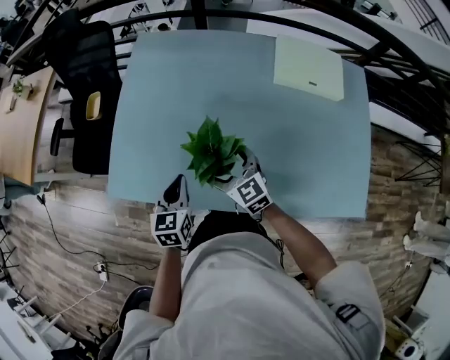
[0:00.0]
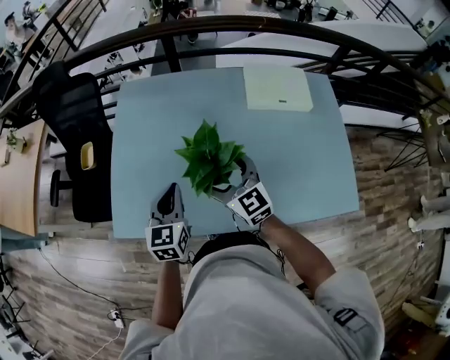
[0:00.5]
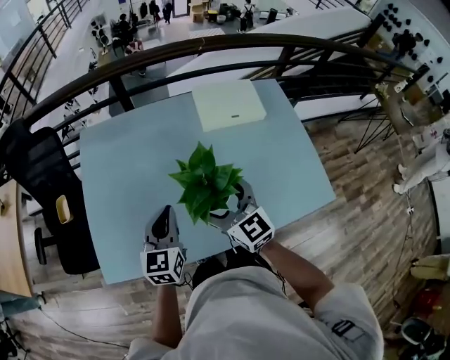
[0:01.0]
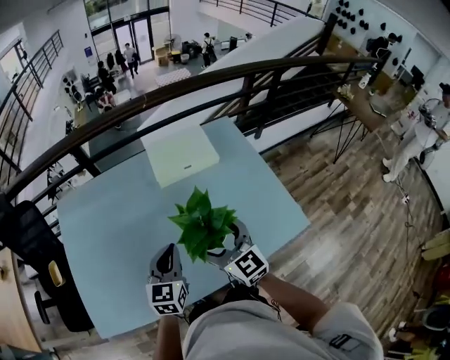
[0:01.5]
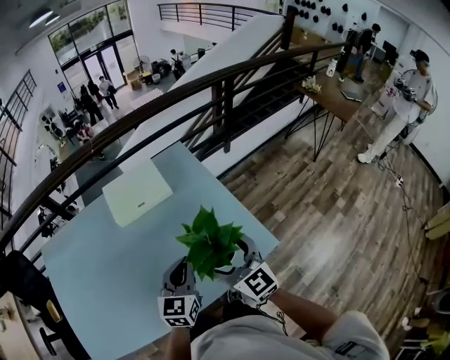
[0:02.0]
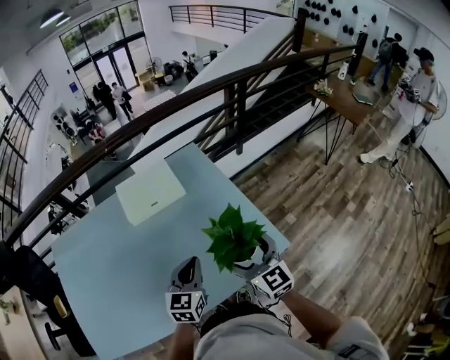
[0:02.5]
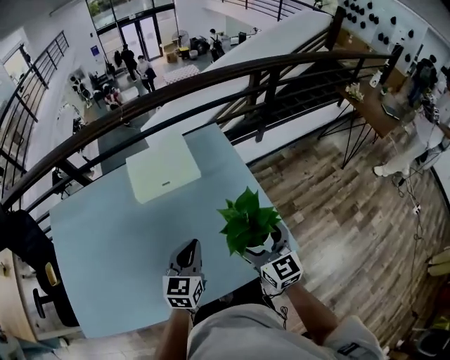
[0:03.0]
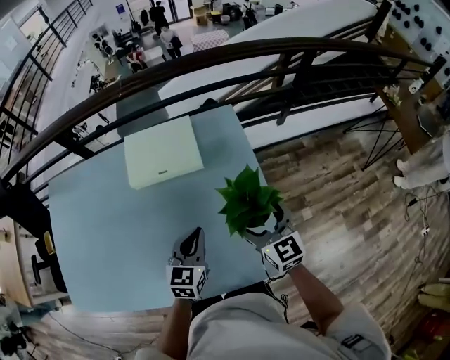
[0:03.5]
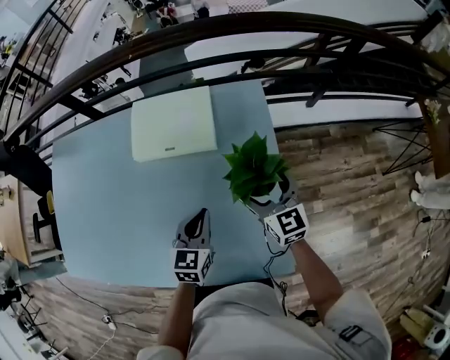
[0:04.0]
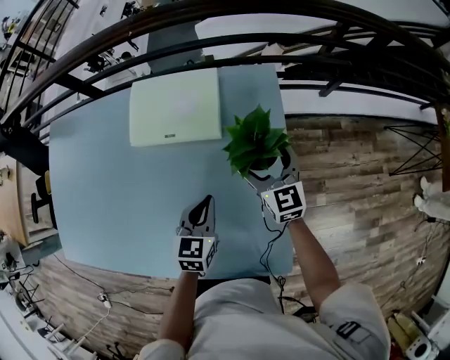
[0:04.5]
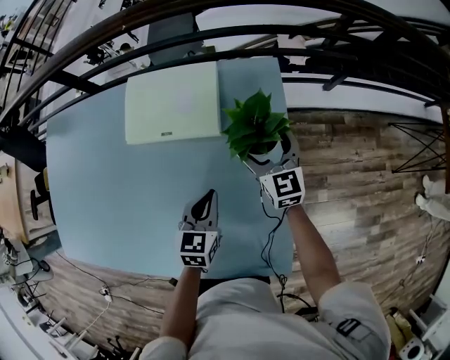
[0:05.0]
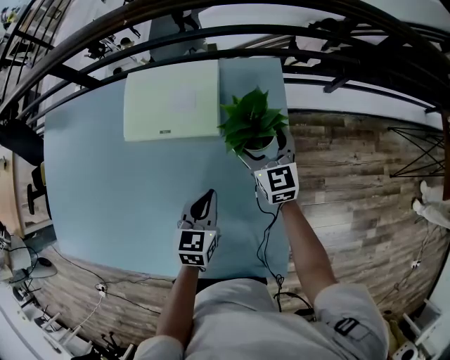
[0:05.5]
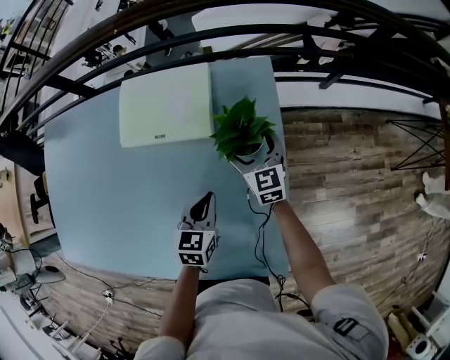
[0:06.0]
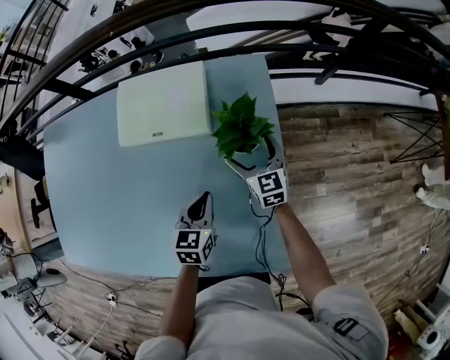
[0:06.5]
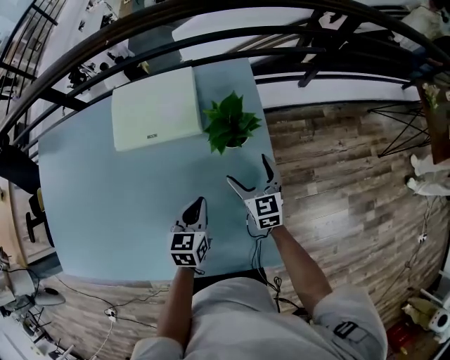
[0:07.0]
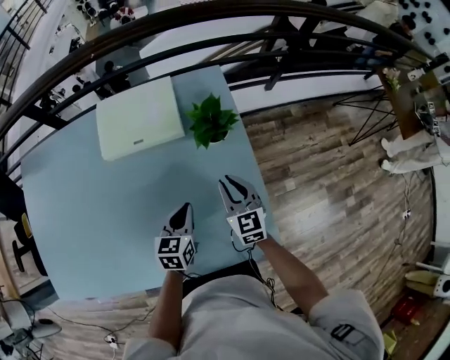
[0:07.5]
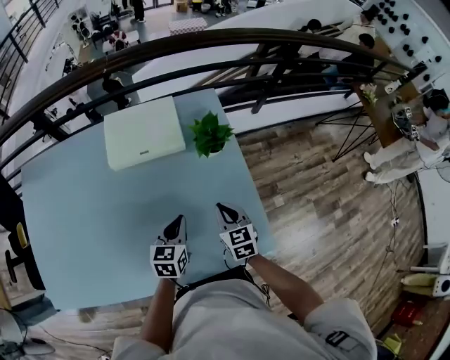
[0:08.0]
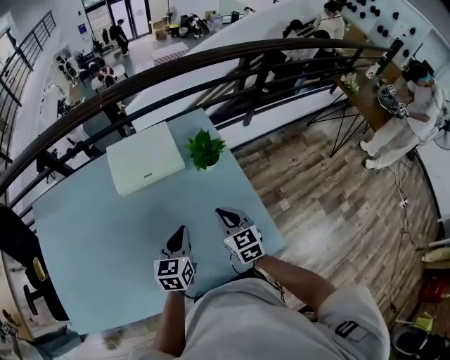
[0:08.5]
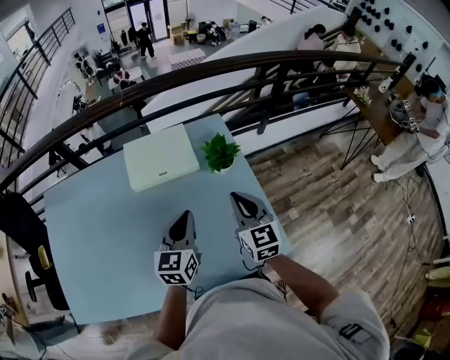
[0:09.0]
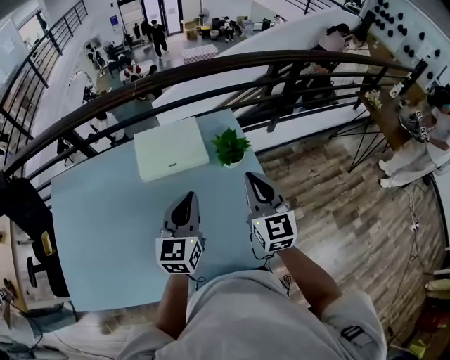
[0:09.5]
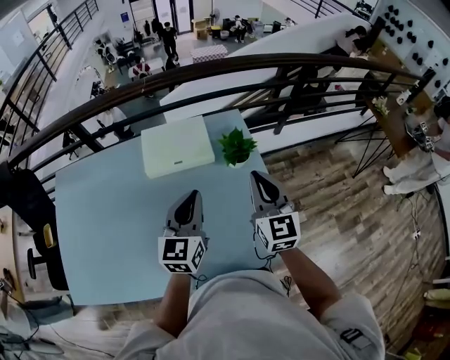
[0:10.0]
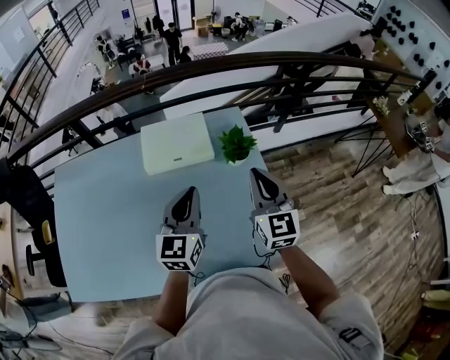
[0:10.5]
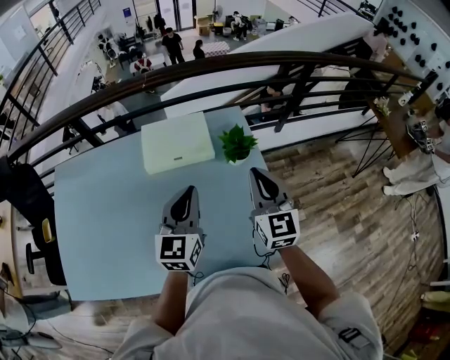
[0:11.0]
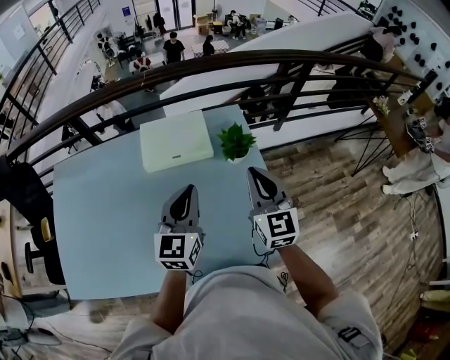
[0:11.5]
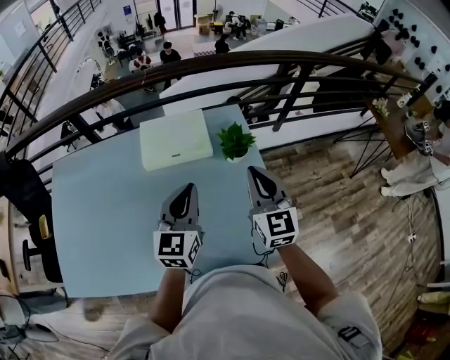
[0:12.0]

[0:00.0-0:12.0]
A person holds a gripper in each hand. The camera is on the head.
0:00.0 to 0:02.0: Both grippers are carried some 50 cm. The left gripper changes its angle by approximately 50 degrees, while the right gripper rotates roughly 40 degrees.
0:02.0 to 0:04.0: The right gripper goes approximately 30 cm forward and downward. The left gripper shifts some 20 cm forward and downward, and swivels about 30 degrees.
0:04.0 to 0:06.0: The right gripper travels downward and forward by approximately 15 cm. Meanwhile the left gripper goes approximately 10 cm downward.
0:06.0 to 0:08.0: The left gripper shifts approximately 10 cm backward and to the left; the right gripper goes approximately 25 cm backward, turns by about 20 degrees, and closes.
0:08.0 to 0:10.0: The grippers both shift upward by some 25 cm. The right gripper rotates about 30 degrees. The left gripper turns by about 30 degrees.
0:10.0 to 0:12.0: Both grippers stay about where they are.

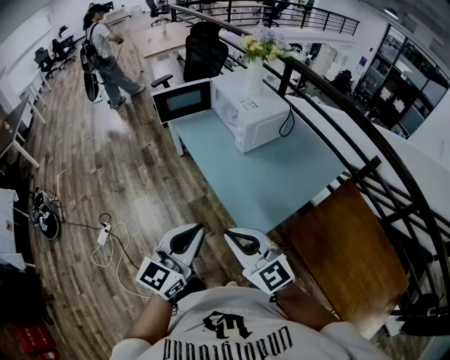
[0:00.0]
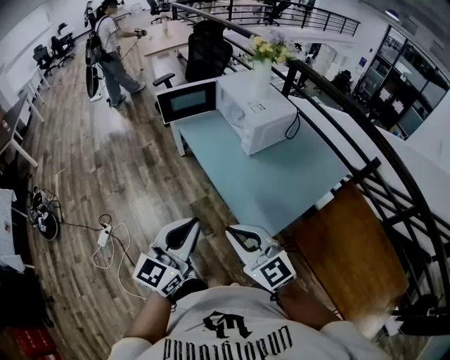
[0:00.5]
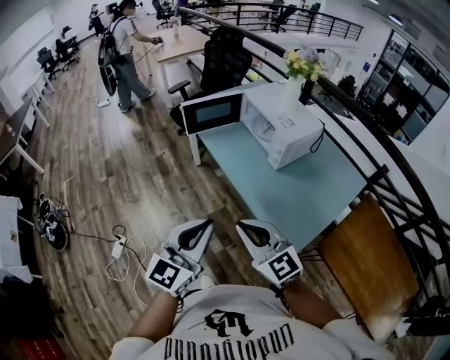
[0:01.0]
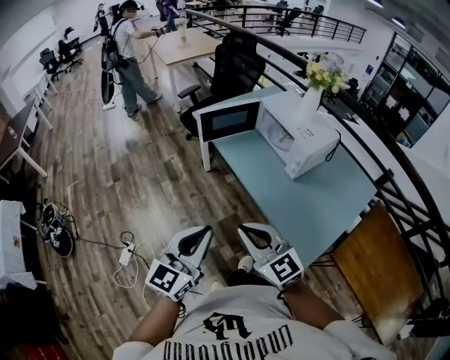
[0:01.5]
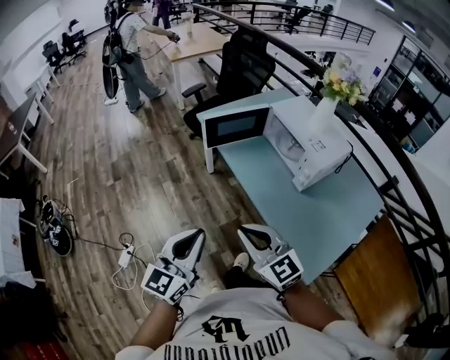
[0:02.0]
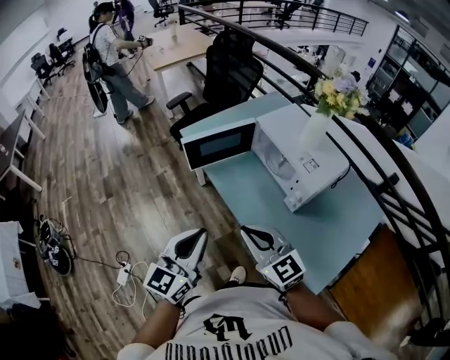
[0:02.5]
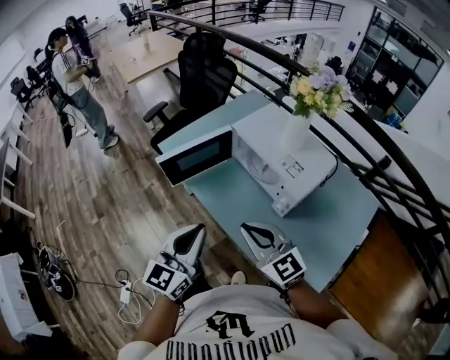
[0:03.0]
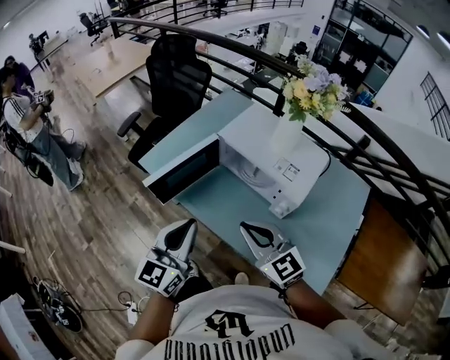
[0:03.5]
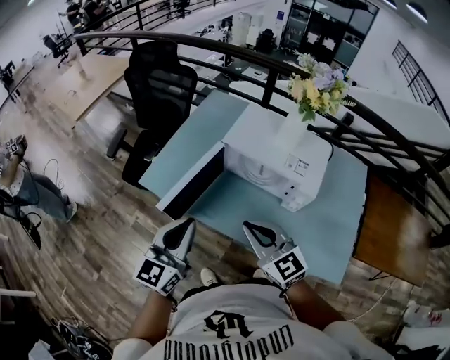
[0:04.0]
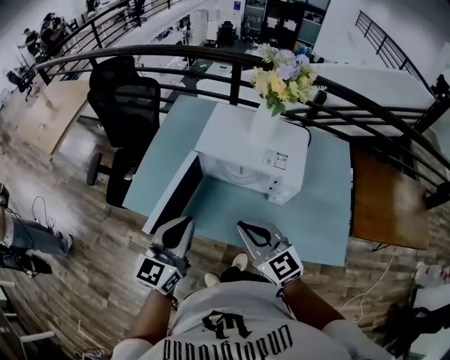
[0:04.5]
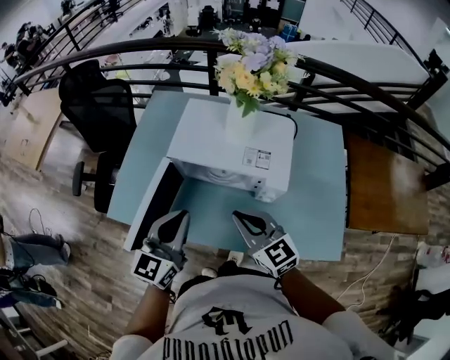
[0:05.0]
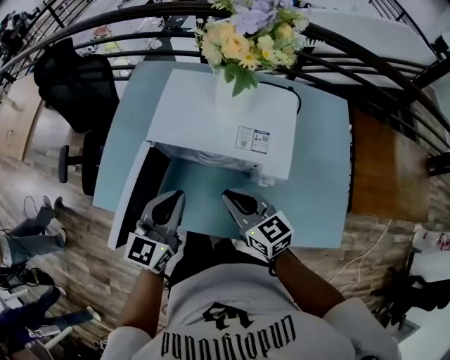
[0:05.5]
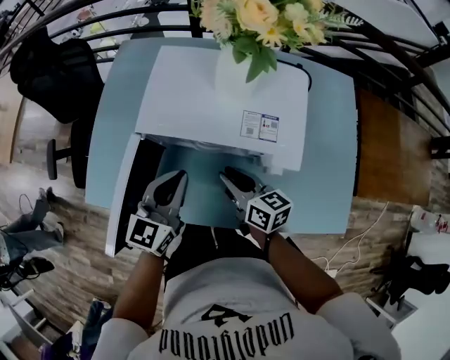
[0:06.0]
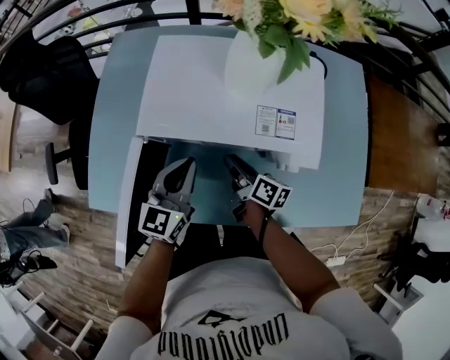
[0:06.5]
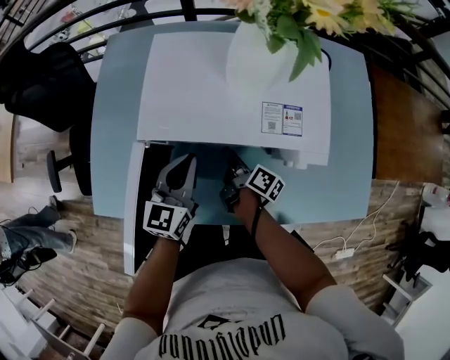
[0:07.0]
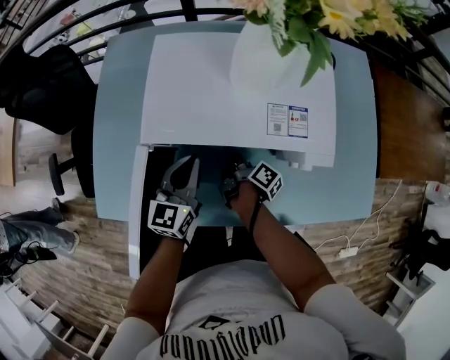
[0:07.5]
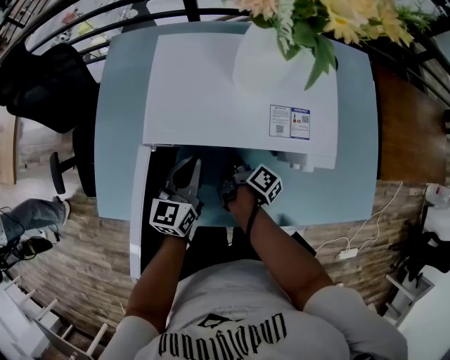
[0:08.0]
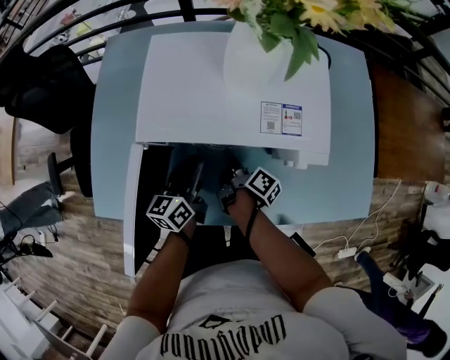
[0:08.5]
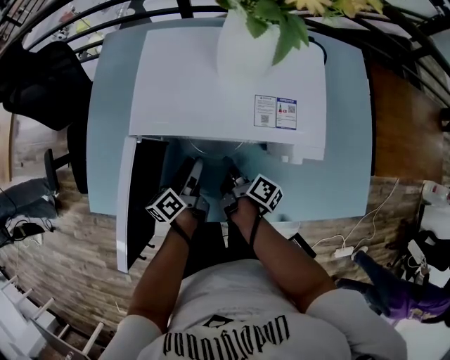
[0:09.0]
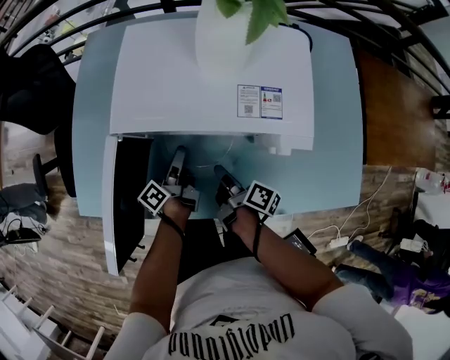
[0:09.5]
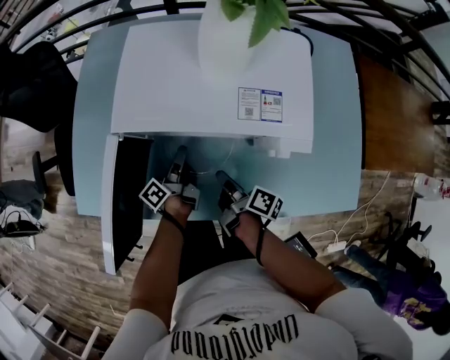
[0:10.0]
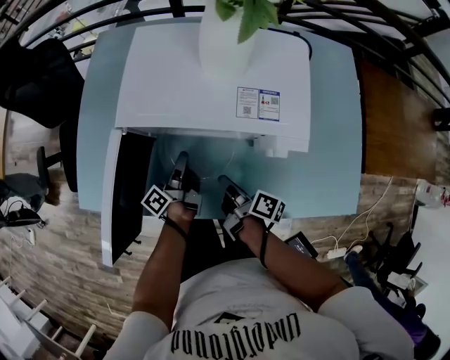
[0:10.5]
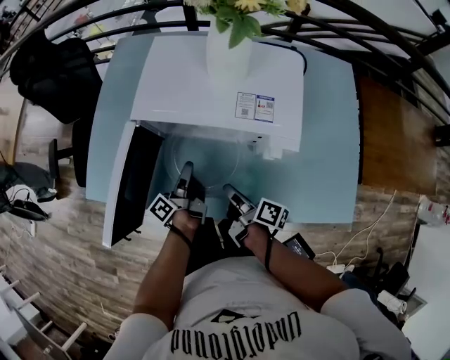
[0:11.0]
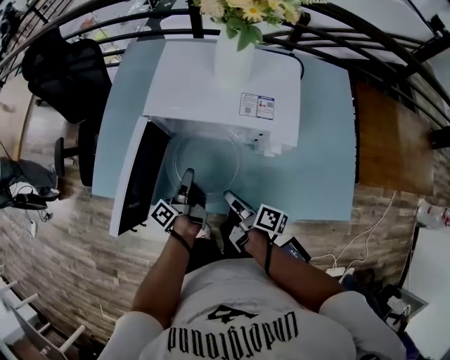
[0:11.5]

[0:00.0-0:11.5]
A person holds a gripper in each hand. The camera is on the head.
0:00.0 to 0:02.0: The left gripper travels to the left and forward by about 35 cm. The right gripper heads forward and to the left, covering roughly 30 cm.
0:02.0 to 0:04.0: The left gripper shifts by some 40 cm, and turns by roughly 30 degrees; the right gripper changes place by approximately 30 cm, and turns by some 30 degrees.
0:04.0 to 0:06.0: The right gripper is displaced downward, forward and to the right by approximately 25 cm, and rolls clockwise, seen from behind, by roughly 50 degrees. Meanwhile the left gripper is displaced forward, downward and to the right by approximately 30 cm, and rotates some 20 degrees.
0:06.0 to 0:07.5: The right gripper goes roughly 20 cm downward and forward, and twists some 60 degrees clockwise, seen from behind; the left gripper heads downward and forward, covering some 10 cm.
0:07.5 to 0:09.5: The left gripper heads downward, covering about 10 cm, rolls counterclockwise, seen from behind, by roughly 70 degrees, and opens. Meanwhile the right gripper heads backward, covering some 10 cm, and closes.
0:09.5 to 0:11.5: Both grippers travel together backward and upward, about 10 cm. The left gripper closes its fingers.

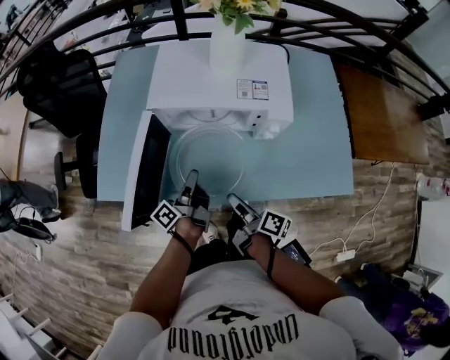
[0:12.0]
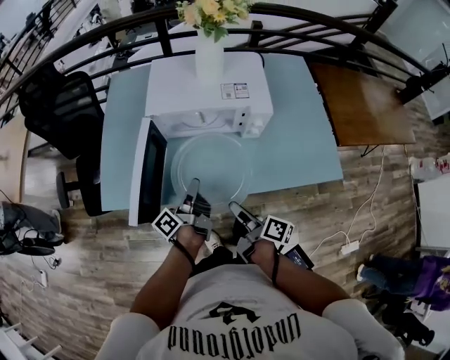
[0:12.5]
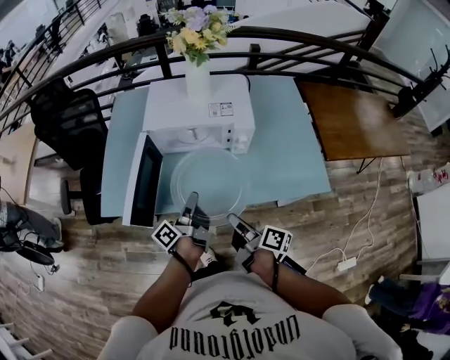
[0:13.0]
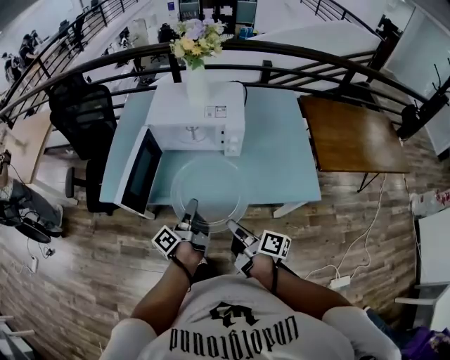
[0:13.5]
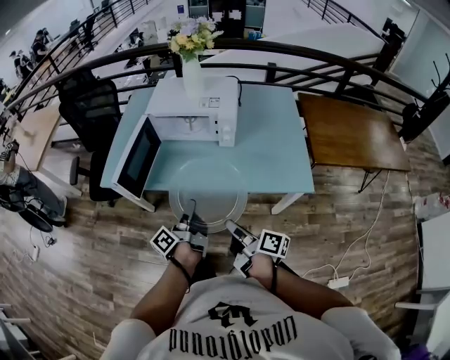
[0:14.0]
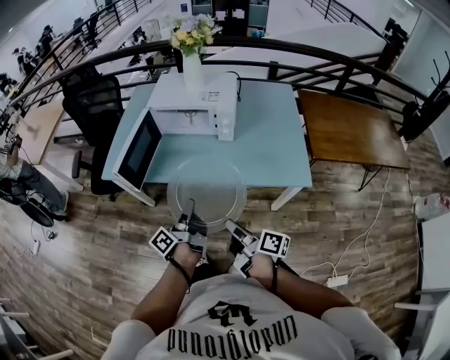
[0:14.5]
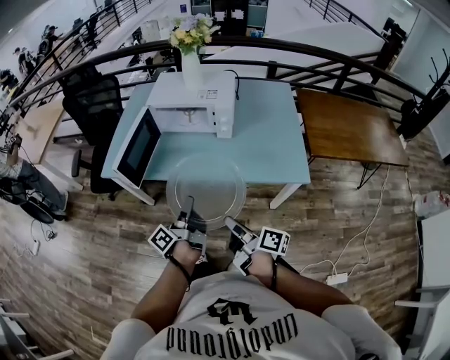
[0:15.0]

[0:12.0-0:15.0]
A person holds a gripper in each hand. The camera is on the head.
0:12.0 to 0:13.5: Both grippers move backward, upward and to the right, about 20 cm.
0:13.5 to 0:15.0: Both grippers travel together backward, about 10 cm.
